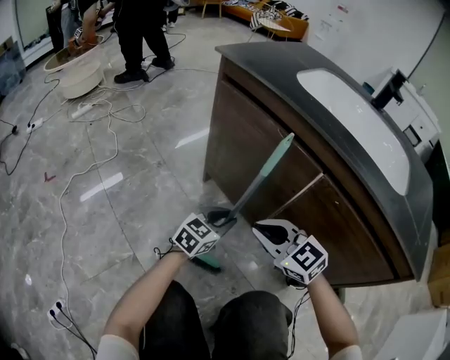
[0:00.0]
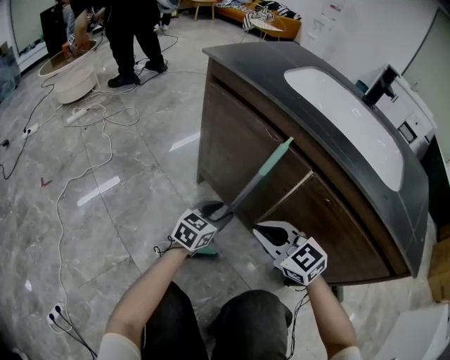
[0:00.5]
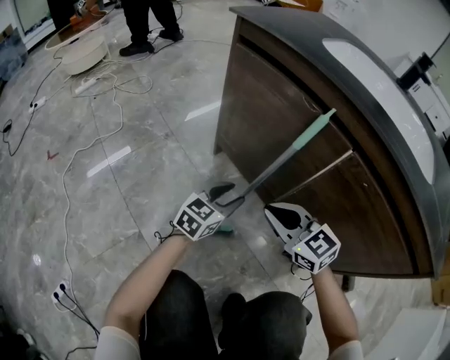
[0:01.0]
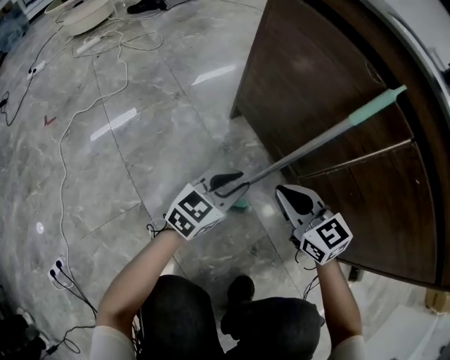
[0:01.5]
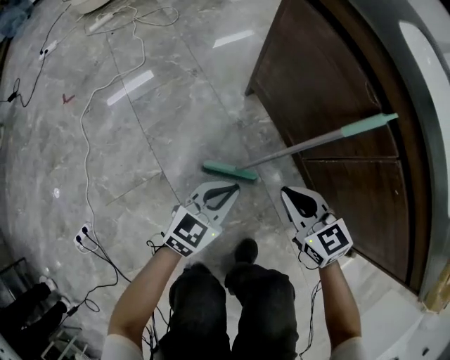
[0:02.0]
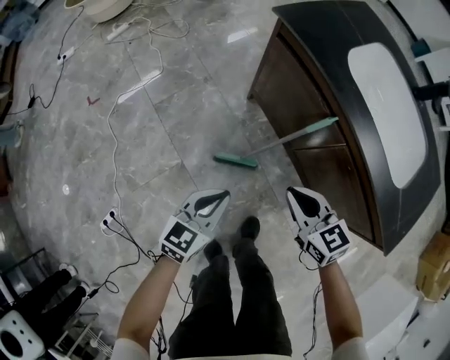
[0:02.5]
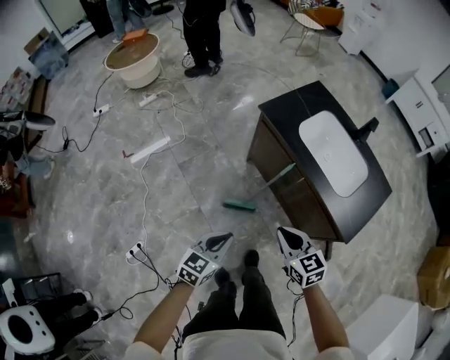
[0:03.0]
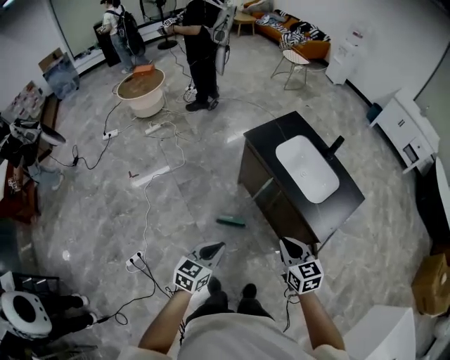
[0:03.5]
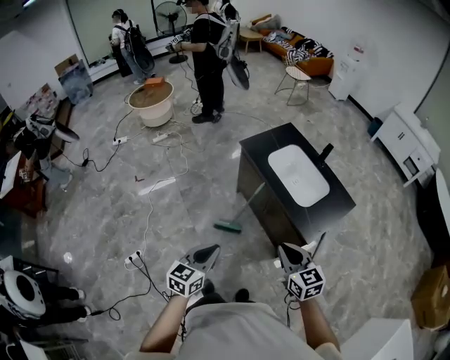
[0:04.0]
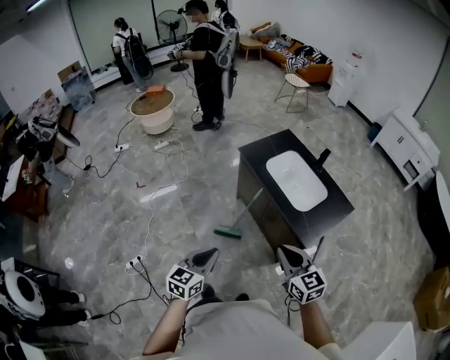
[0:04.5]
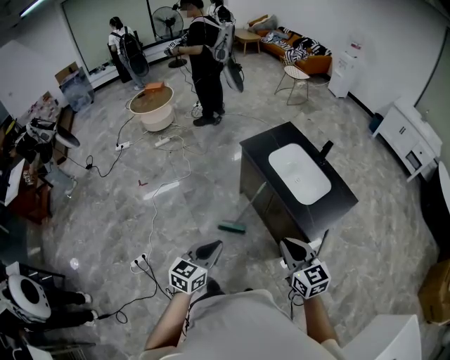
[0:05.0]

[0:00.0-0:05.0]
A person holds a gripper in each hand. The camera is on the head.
0:00.0 to 0:02.5: The left gripper travels upward, to the left and backward by roughly 35 cm, and rotates some 20 degrees. The right gripper moves upward, some 20 cm, and turns by some 20 degrees.
0:02.5 to 0:05.0: Both grippers travel together upward and backward, some 60 cm.

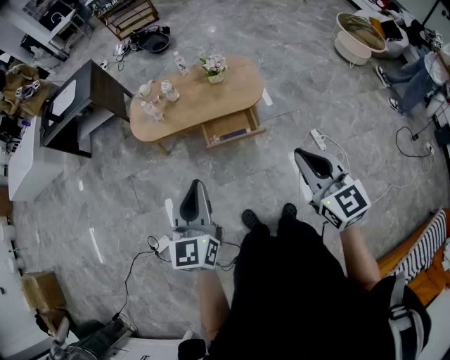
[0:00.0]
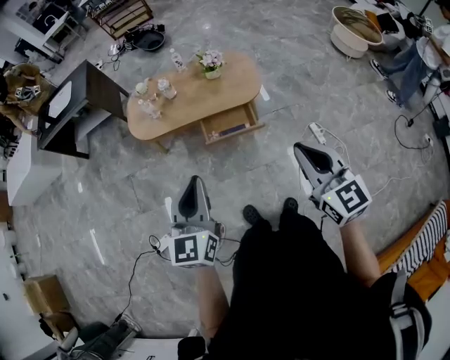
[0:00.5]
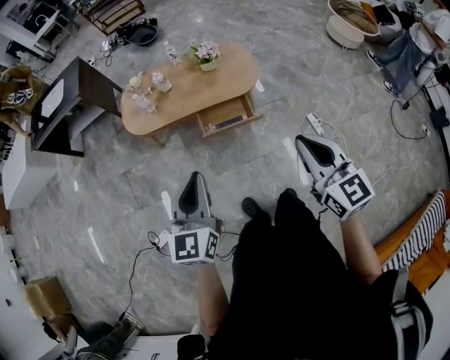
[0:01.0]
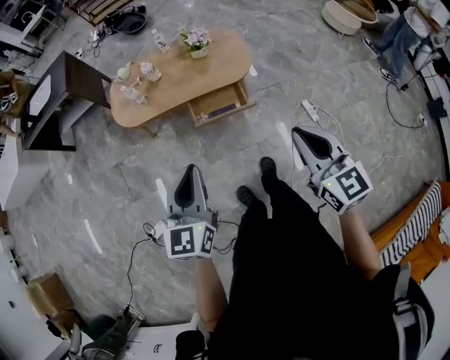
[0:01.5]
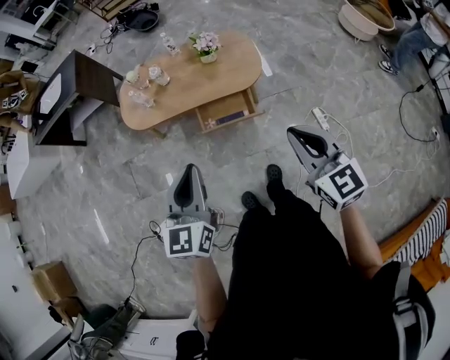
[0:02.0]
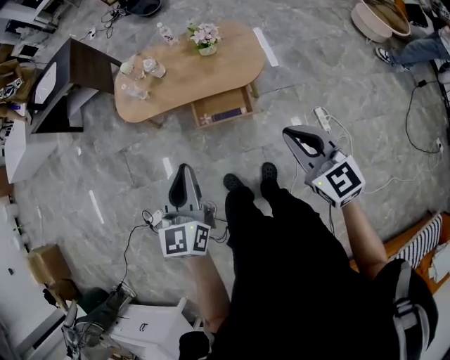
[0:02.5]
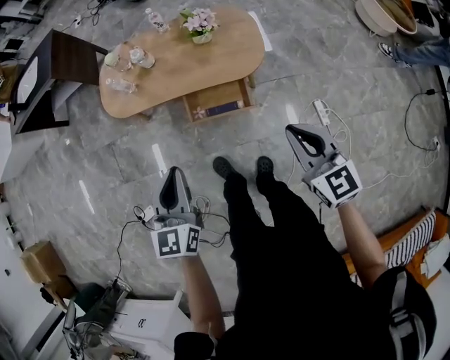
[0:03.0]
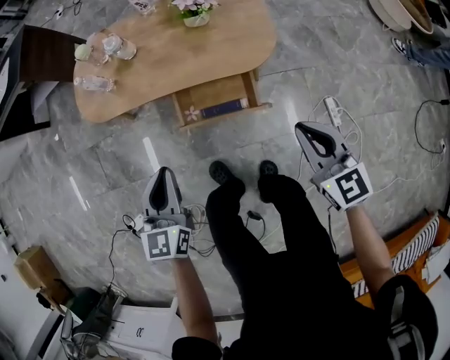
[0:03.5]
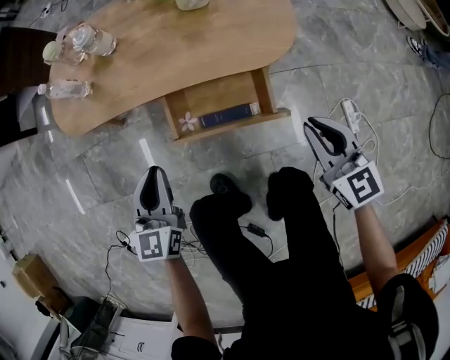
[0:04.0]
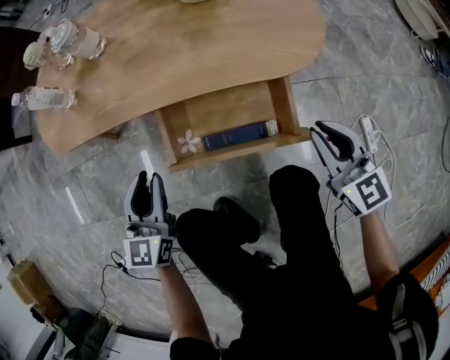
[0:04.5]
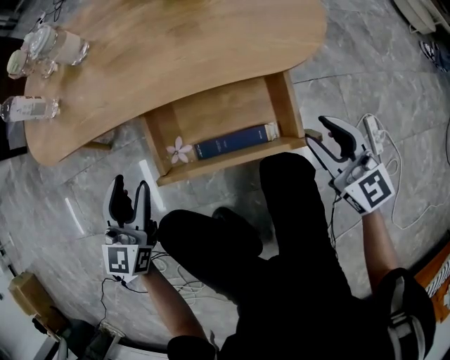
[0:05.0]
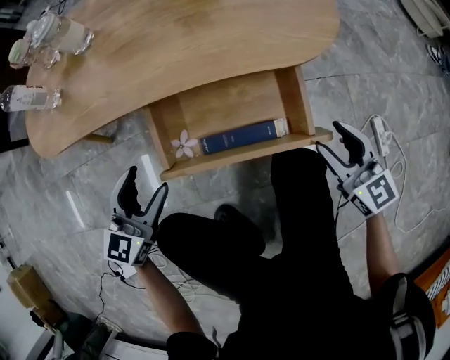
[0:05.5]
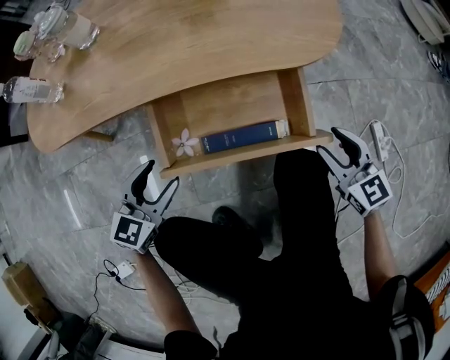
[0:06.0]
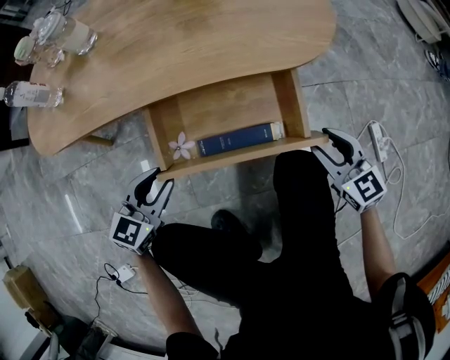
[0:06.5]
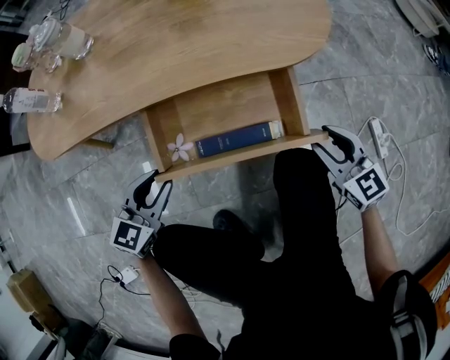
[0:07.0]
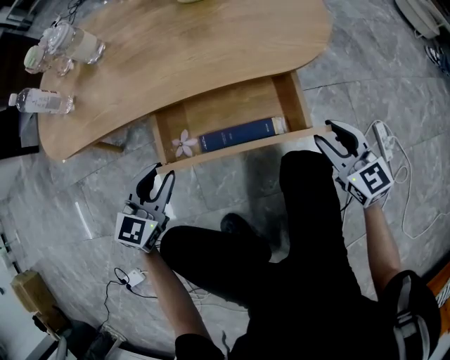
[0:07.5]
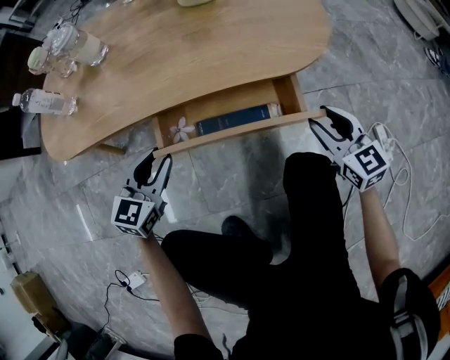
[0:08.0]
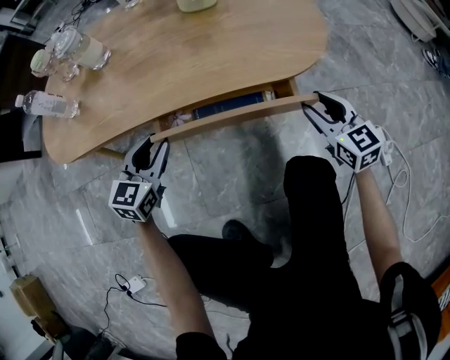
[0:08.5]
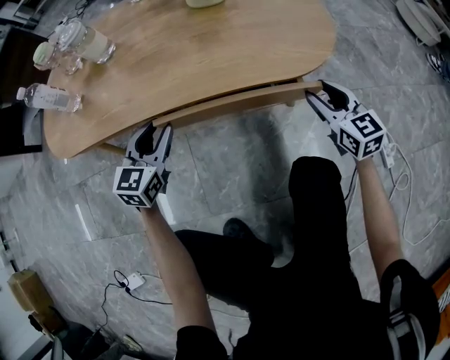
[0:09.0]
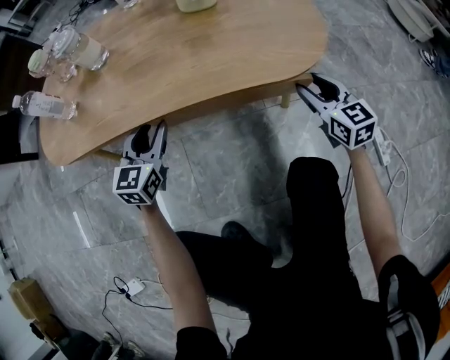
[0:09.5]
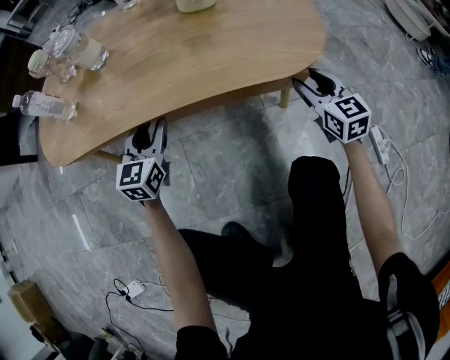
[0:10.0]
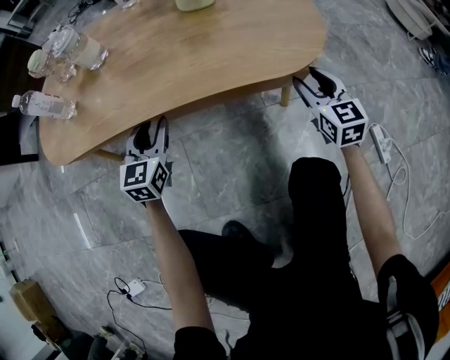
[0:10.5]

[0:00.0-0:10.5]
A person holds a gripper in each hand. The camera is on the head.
0:00.0 to 0:02.0: The grippers both shift forward by some 10 cm.
0:02.0 to 0:04.0: Both grippers move downward and forward, approximately 50 cm.
0:04.0 to 0:06.5: The two grippers go roughly 25 cm downward. The left gripper rotates about 30 degrees, and opens, while the right gripper opens up.
0:06.5 to 0:08.5: The two grippers go some 10 cm forward.
0:08.5 to 0:10.5: The two grippers go about 5 cm forward.

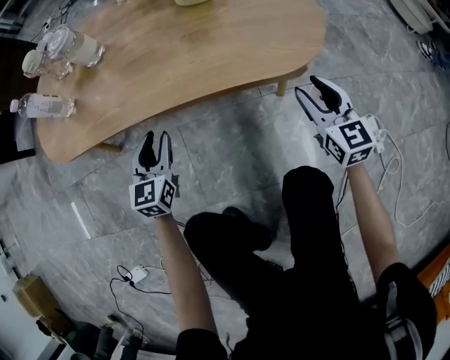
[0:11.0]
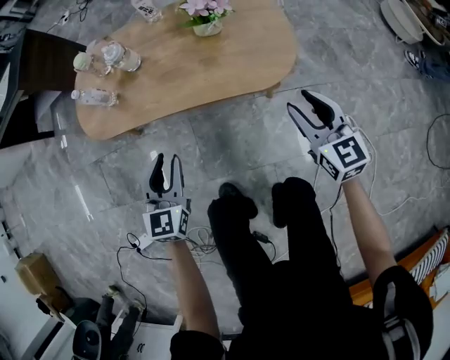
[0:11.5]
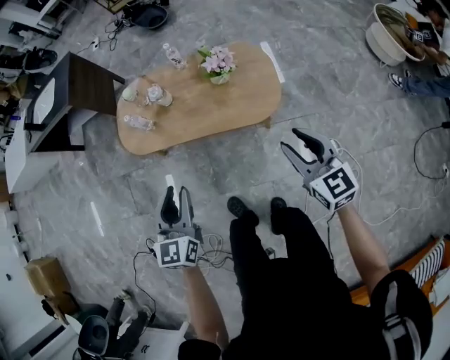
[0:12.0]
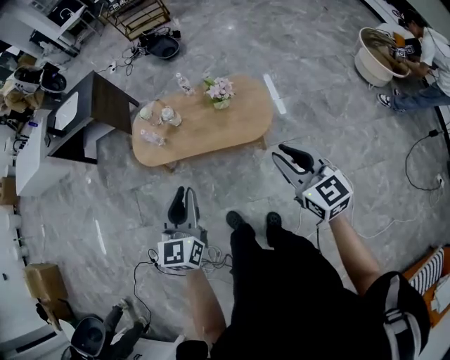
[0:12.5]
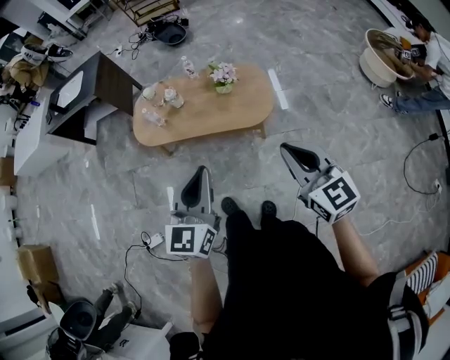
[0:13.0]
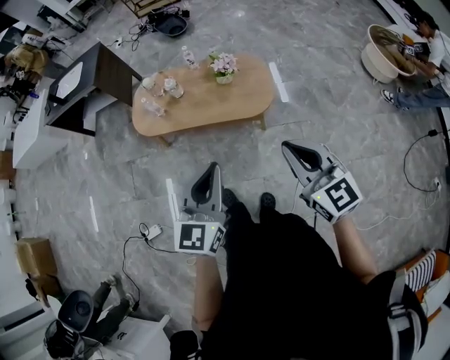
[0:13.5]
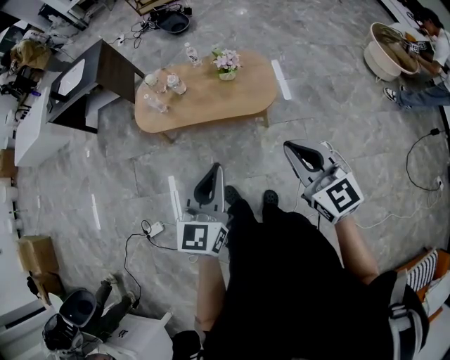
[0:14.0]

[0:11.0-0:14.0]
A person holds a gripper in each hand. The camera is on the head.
0:11.0 to 0:12.5: Both grippers travel together upward, roughly 70 cm.
0:12.5 to 0:14.0: The left gripper is displaced backward and to the right by some 10 cm. Meanwhile the right gripper is displaced backward by roughly 10 cm.

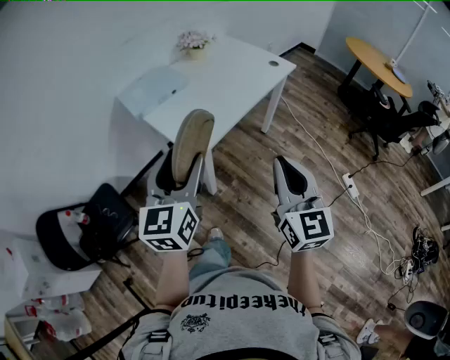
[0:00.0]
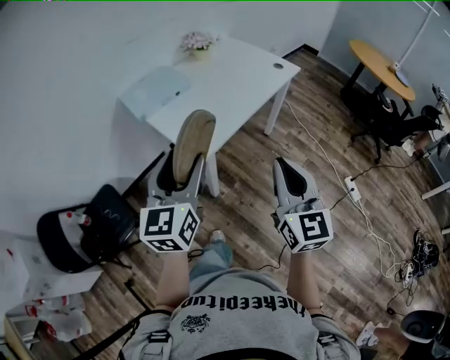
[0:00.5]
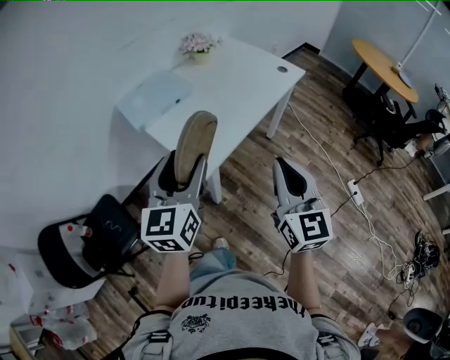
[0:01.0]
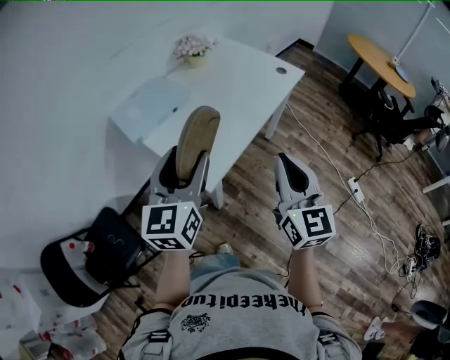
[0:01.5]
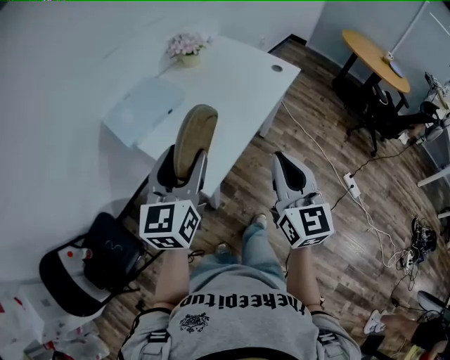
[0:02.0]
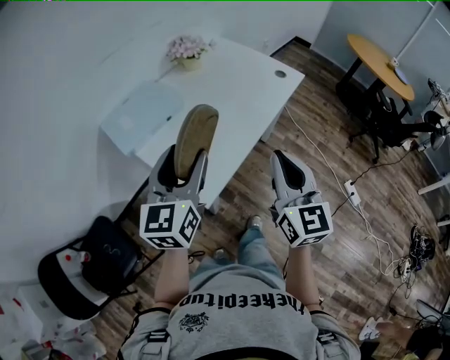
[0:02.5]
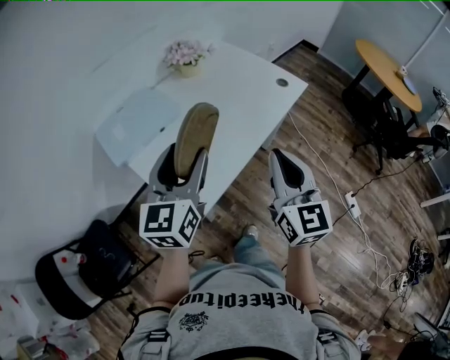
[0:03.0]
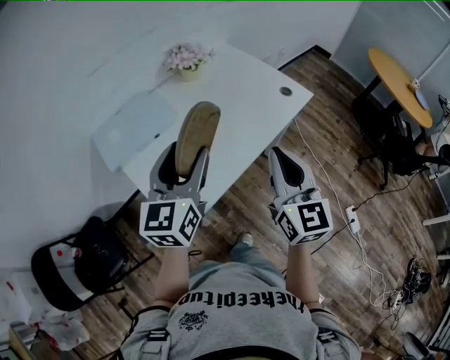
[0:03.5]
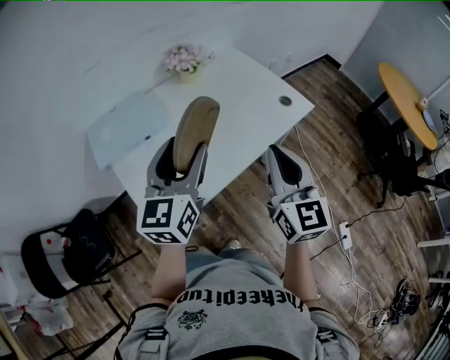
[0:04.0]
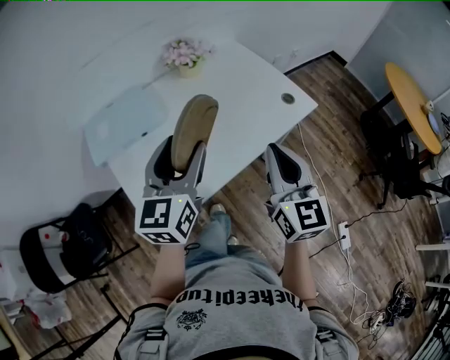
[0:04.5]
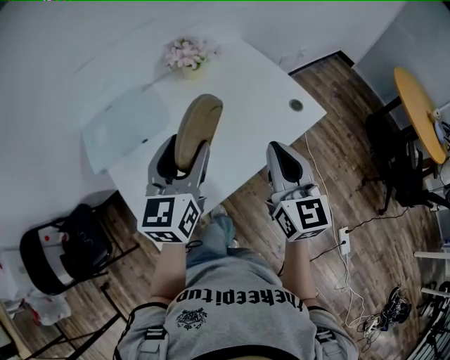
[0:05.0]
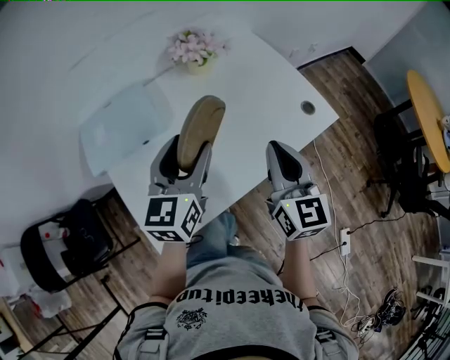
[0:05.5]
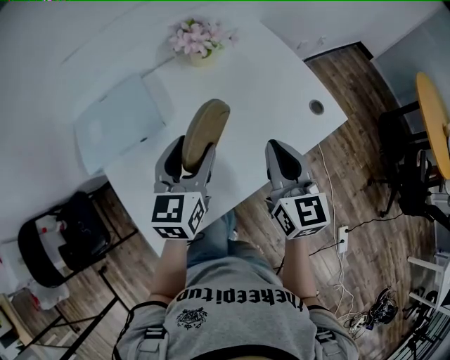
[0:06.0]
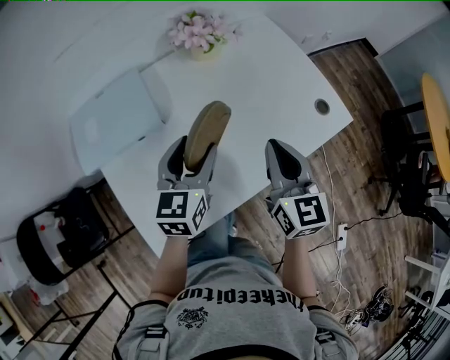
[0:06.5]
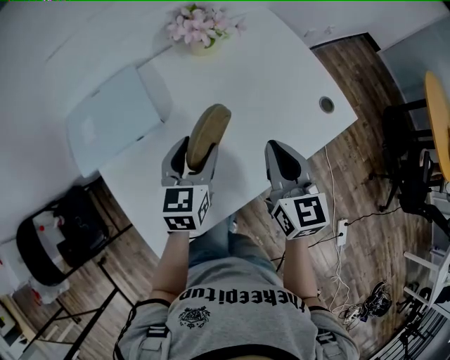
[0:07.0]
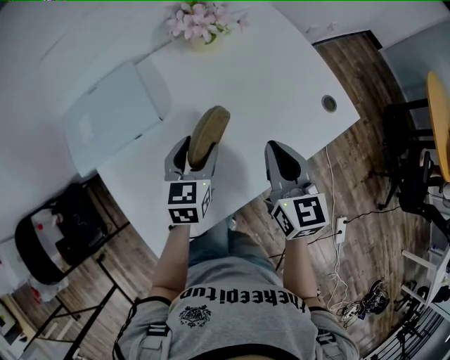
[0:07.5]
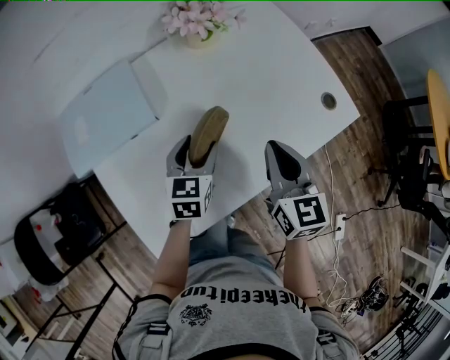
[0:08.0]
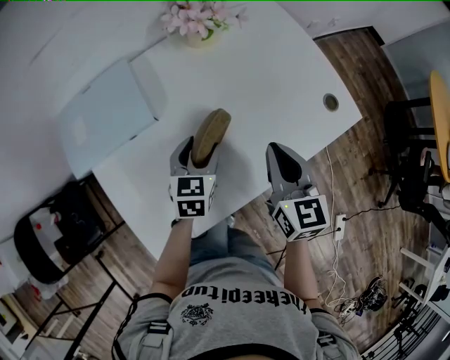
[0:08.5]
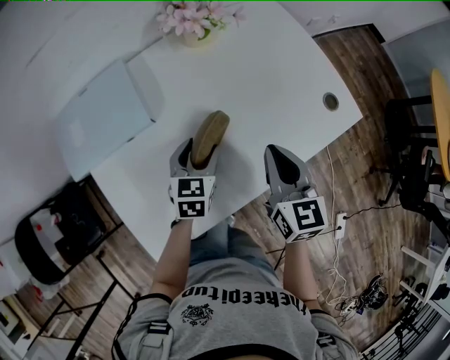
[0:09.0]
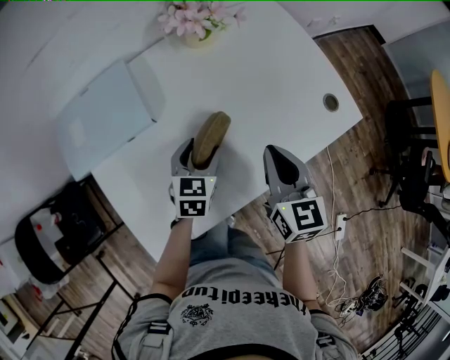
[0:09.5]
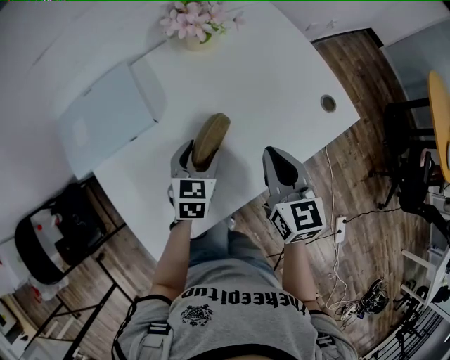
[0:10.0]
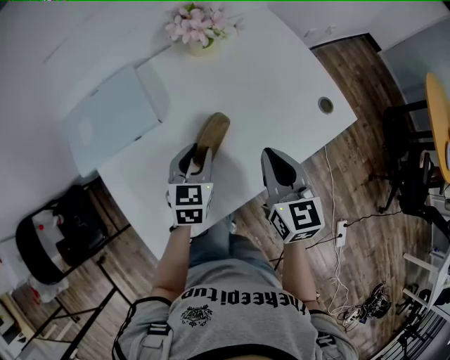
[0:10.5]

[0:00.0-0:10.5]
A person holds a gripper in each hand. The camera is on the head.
0:00.0 to 0:02.0: Both grippers travel together forward, roughly 15 cm.
0:02.0 to 0:04.0: The two grippers go roughly 25 cm forward and to the right.
0:04.0 to 0:06.5: The grippers both shift forward and downward by approximately 20 cm.
0:06.5 to 0:08.5: The right gripper travels downward by approximately 5 cm. Meanwhile the left gripper moves downward, roughly 15 cm.
0:08.5 to 0:10.5: The left gripper closes.
